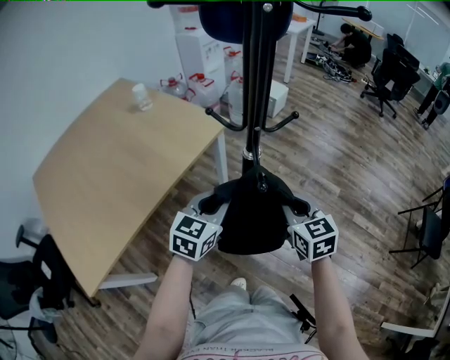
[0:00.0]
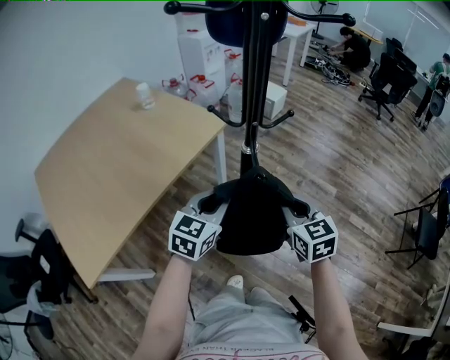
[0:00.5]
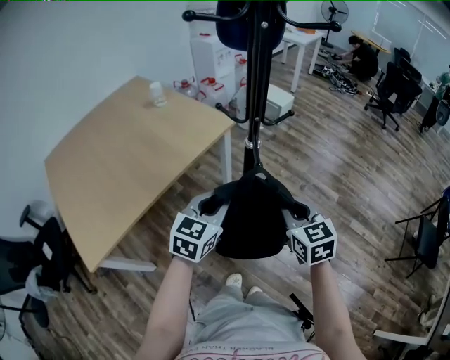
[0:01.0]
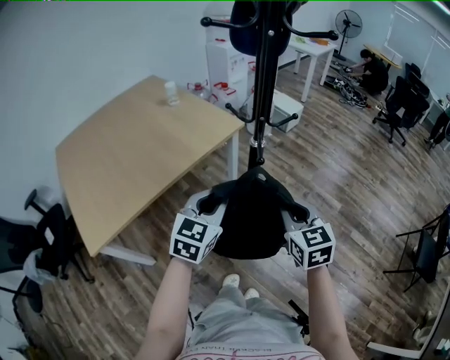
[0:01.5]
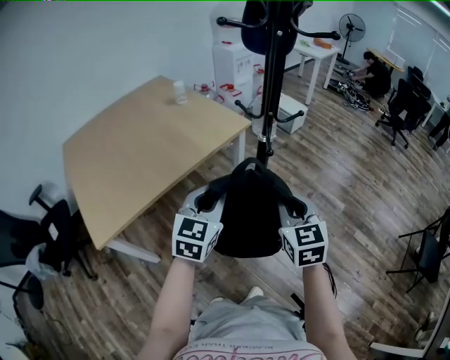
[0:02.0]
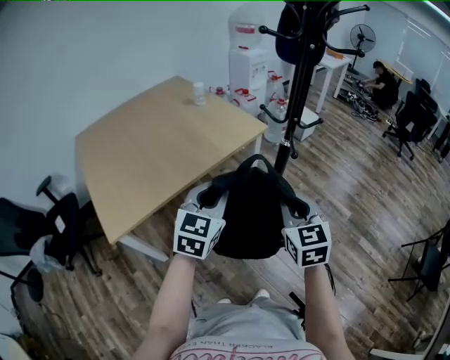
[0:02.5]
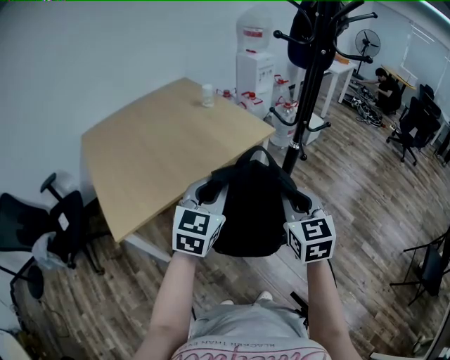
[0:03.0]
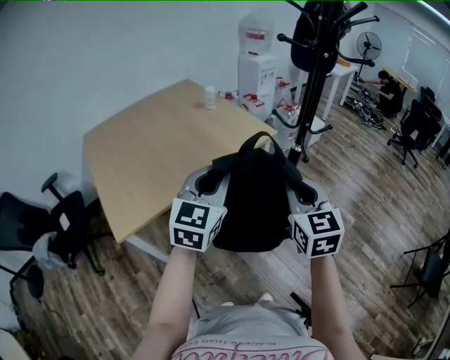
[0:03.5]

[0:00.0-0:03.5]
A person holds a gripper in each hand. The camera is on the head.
0:00.0 to 0:02.0: Both grippers move backward and upward, roughly 15 cm. The left gripper turns by some 20 degrees.
0:02.0 to 0:03.5: The grippers both shift to the left and upward by some 15 cm.

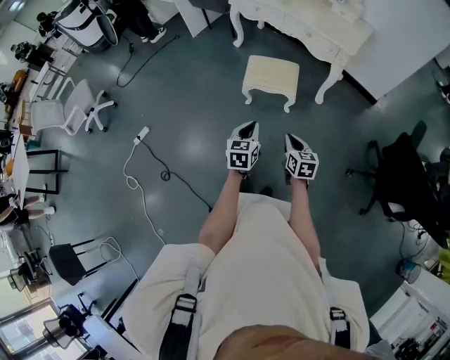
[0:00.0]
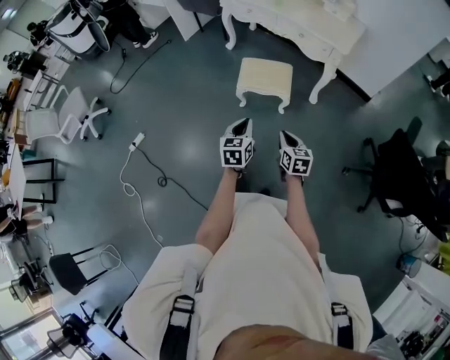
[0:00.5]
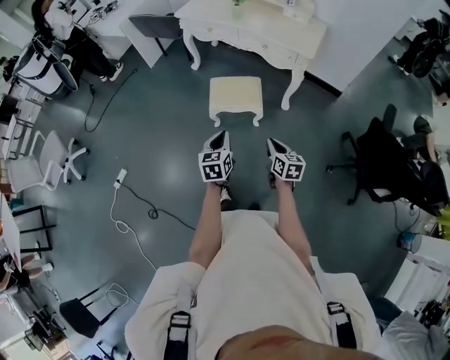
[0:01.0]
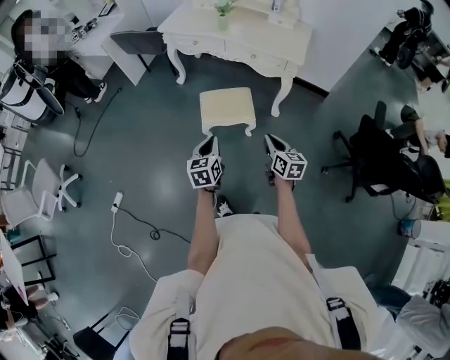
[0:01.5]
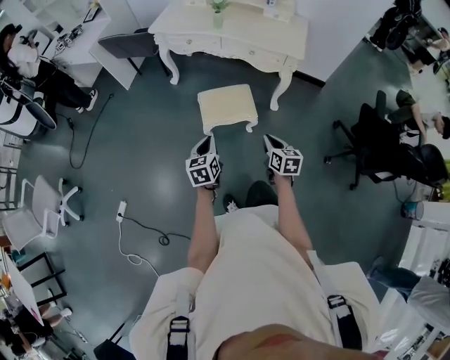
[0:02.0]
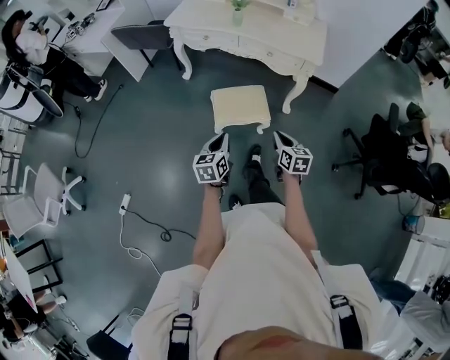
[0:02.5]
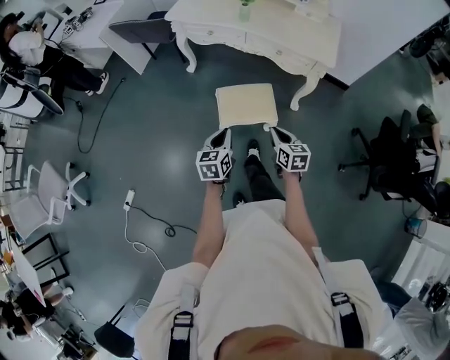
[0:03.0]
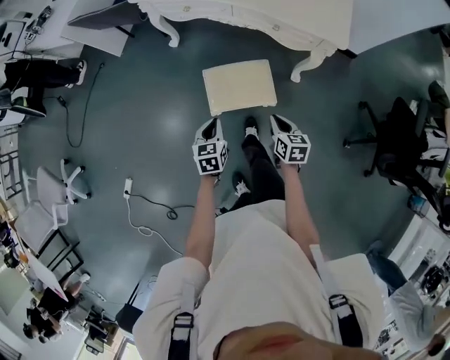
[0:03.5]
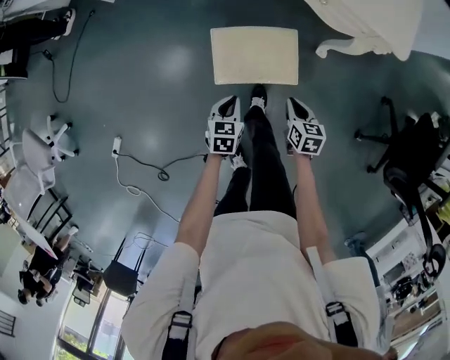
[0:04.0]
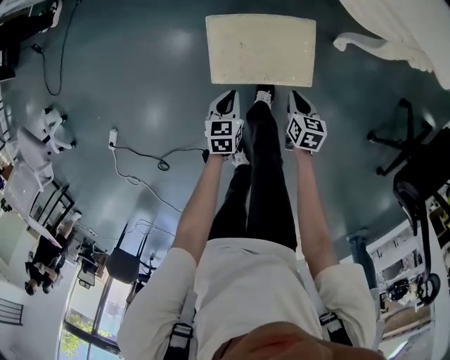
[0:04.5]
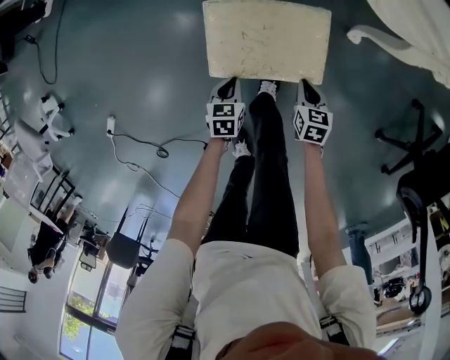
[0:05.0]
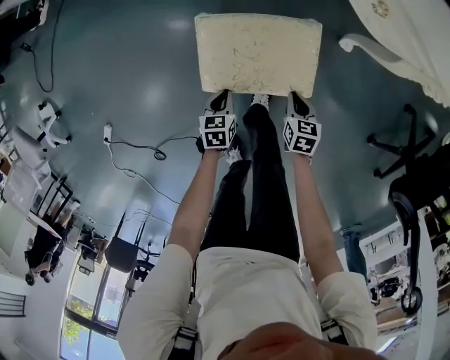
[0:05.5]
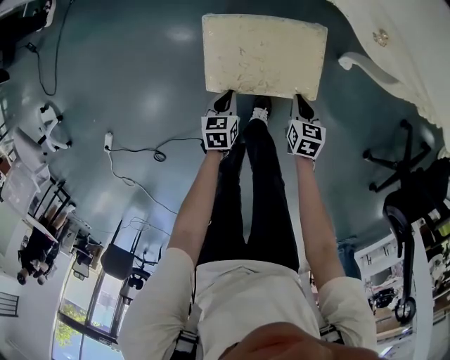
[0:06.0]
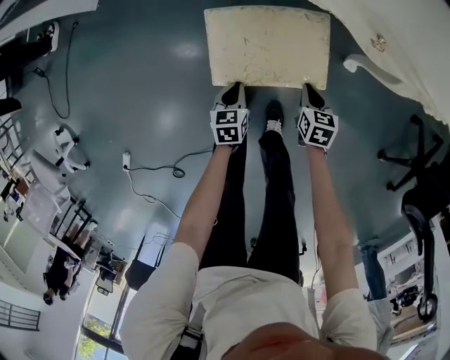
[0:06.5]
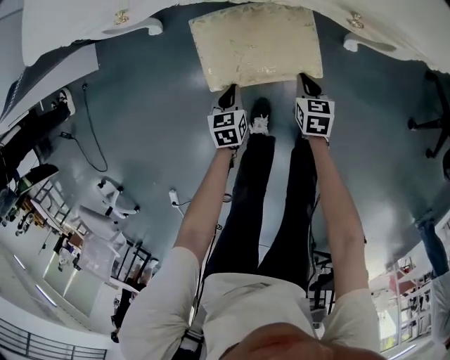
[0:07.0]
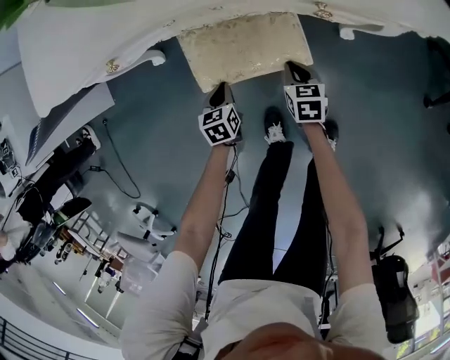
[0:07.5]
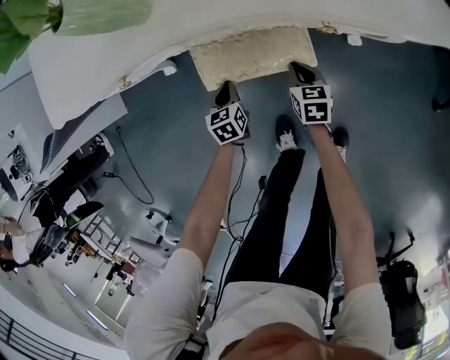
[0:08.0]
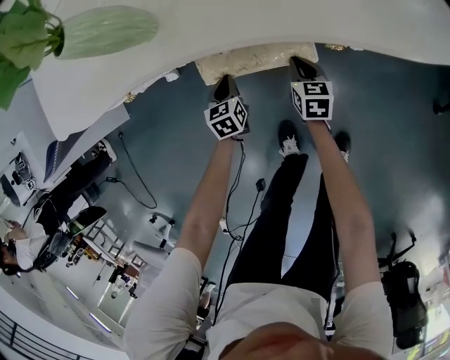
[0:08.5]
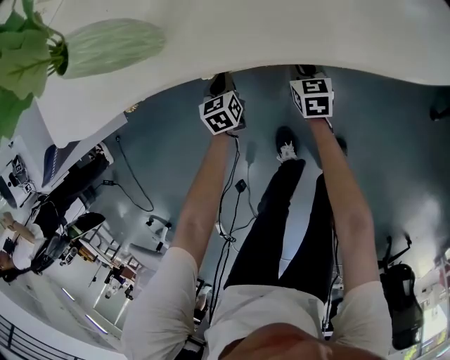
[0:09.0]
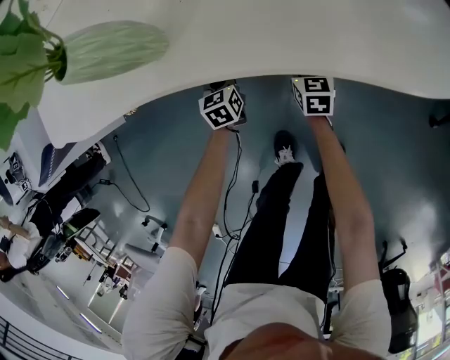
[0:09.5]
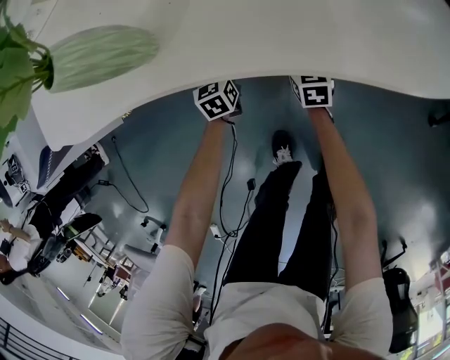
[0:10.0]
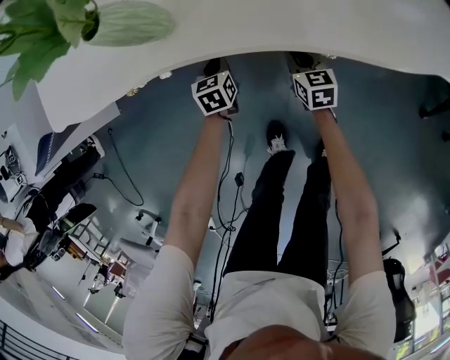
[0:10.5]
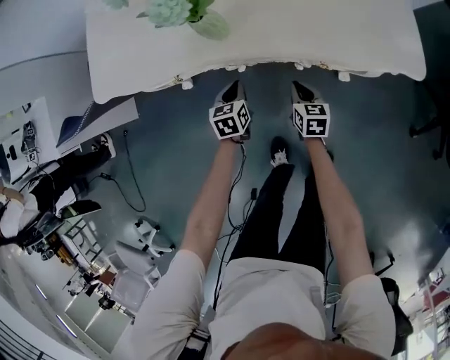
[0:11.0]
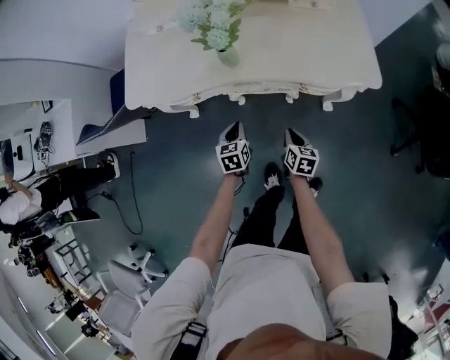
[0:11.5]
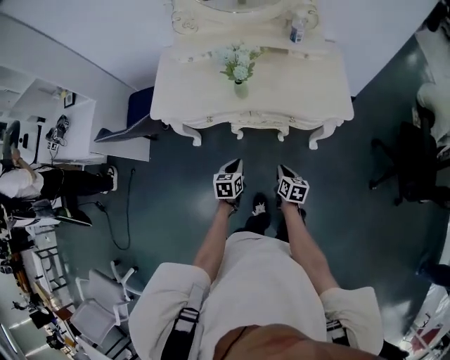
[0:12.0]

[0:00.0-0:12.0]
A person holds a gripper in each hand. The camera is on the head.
0:00.0 to 0:02.0: The left gripper goes about 25 cm forward and to the left; the right gripper moves forward, some 20 cm.
0:02.0 to 0:04.0: The two grippers go approximately 40 cm downward and forward. The left gripper rotates about 20 degrees.
0:04.0 to 0:06.0: Both grippers travel together downward and forward, roughly 25 cm.
0:06.0 to 0:08.0: The two grippers go roughly 25 cm forward. The left gripper turns by approximately 20 degrees. The right gripper changes its angle by roughly 30 degrees.
0:08.0 to 0:10.0: The grippers both shift forward by approximately 15 cm.
0:10.0 to 0:12.0: The grippers both shift upward and backward by approximately 50 cm. The right gripper rotates about 20 degrees.

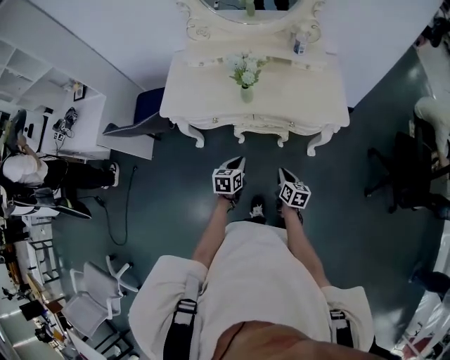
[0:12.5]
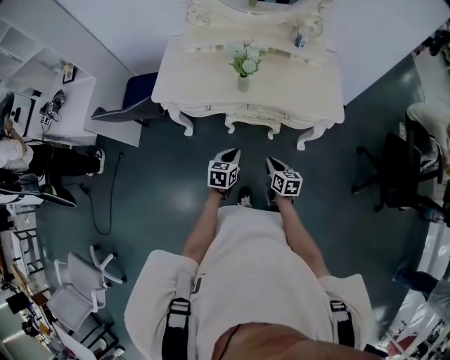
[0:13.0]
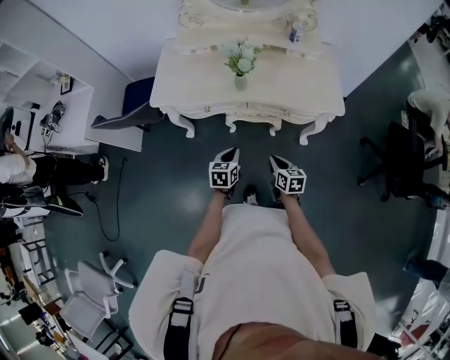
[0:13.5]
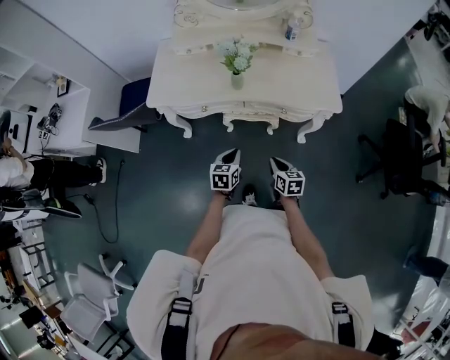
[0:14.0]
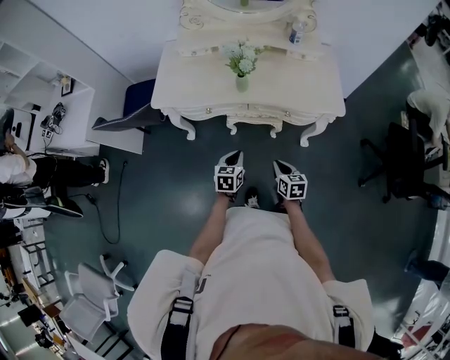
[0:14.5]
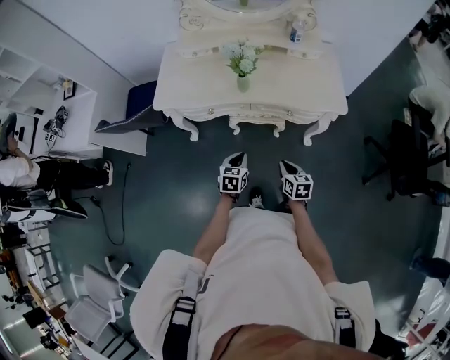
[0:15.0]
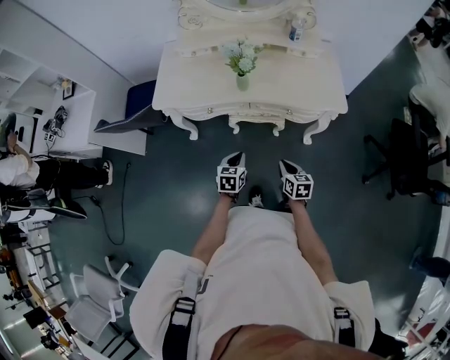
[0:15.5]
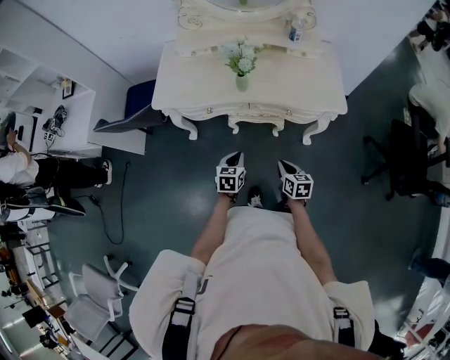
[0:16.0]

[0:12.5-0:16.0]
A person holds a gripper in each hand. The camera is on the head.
0:12.5 to 0:16.0: The grippers make only small movements.

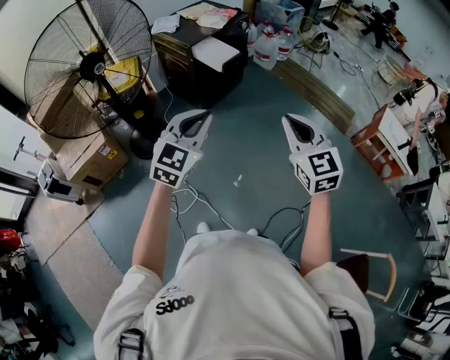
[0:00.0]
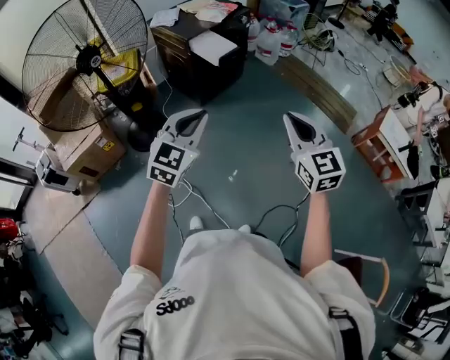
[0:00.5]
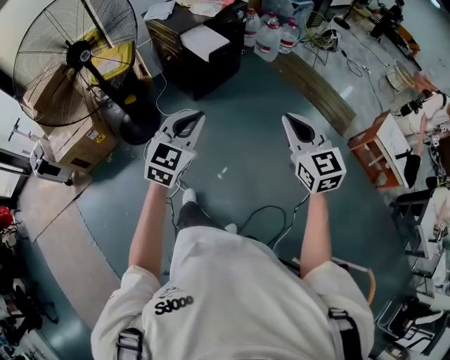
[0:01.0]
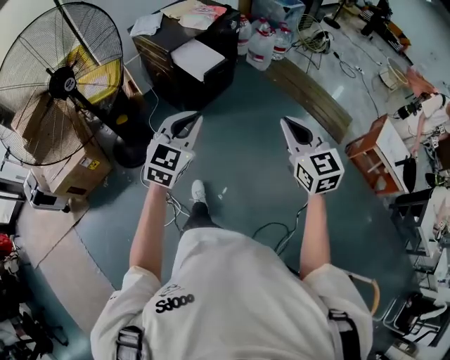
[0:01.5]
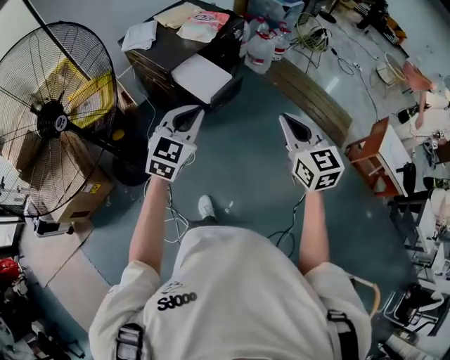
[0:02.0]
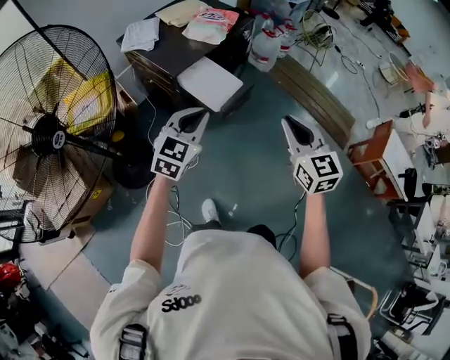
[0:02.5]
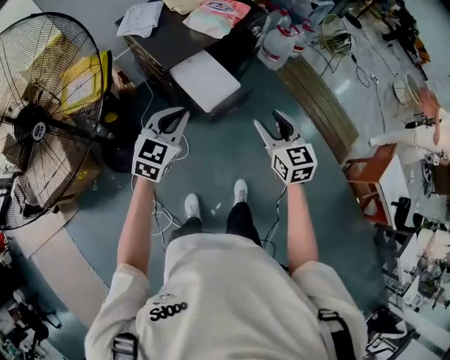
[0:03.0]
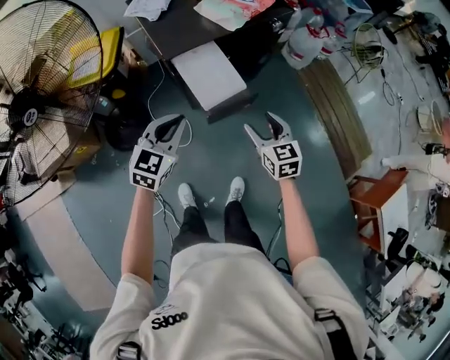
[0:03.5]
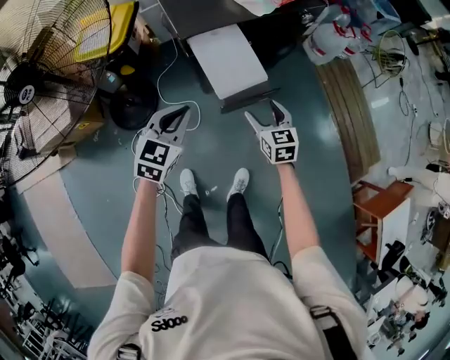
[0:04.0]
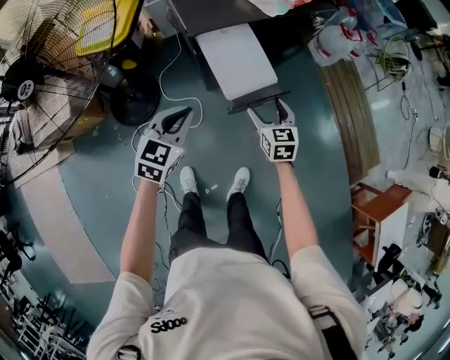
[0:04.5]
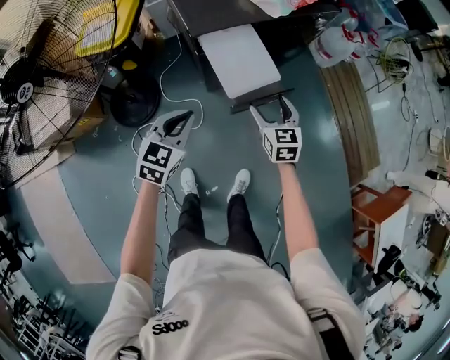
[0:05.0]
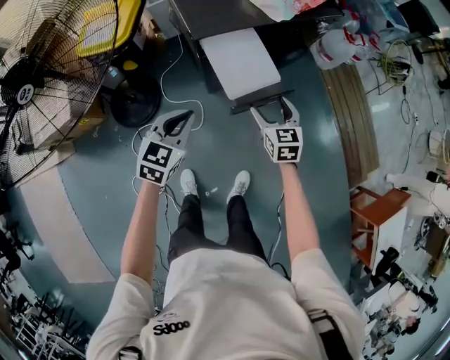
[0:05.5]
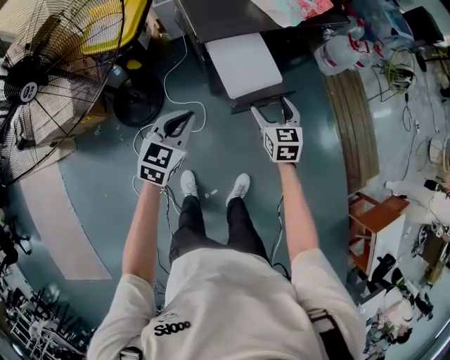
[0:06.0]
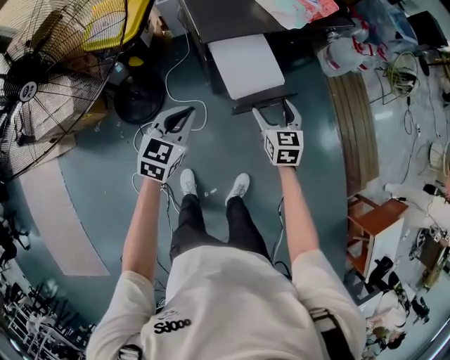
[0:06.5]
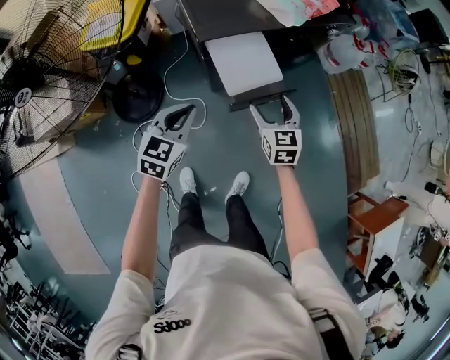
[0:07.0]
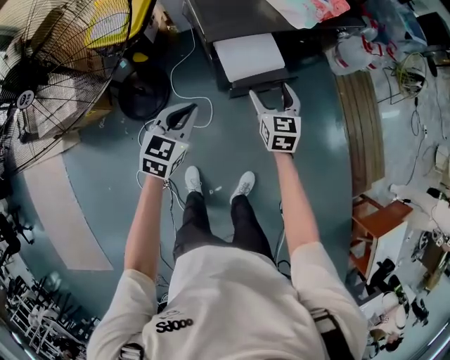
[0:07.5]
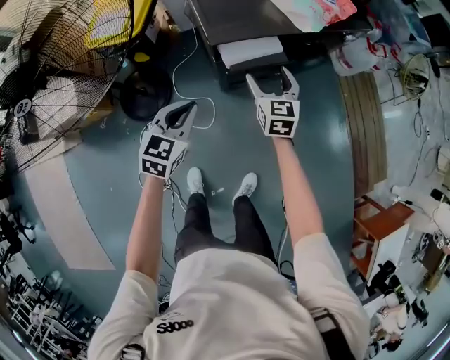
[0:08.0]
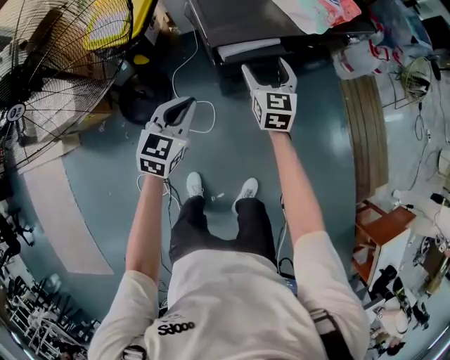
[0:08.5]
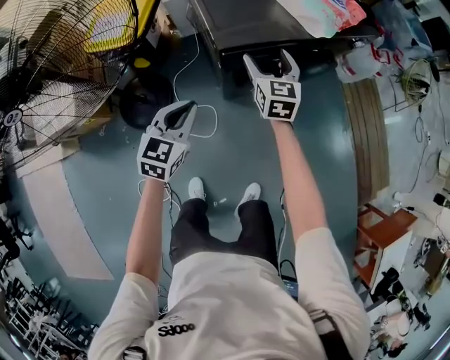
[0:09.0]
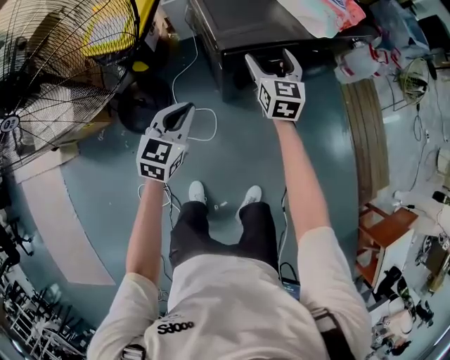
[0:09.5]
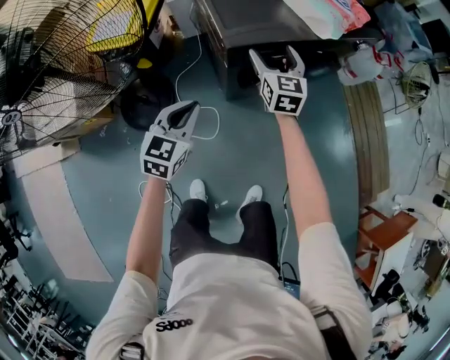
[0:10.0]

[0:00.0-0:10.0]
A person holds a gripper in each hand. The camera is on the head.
0:00.0 to 0:02.0: Both grippers move forward, some 35 cm.
0:02.0 to 0:04.0: The right gripper is displaced downward by some 35 cm, swivels roughly 30 degrees, and opens up. The left gripper travels downward by approximately 20 cm, and rotates about 30 degrees.
0:04.0 to 0:06.0: The right gripper goes roughly 5 cm forward, while the left gripper moves roughly 5 cm.
0:06.0 to 0:08.0: The right gripper is displaced forward and to the left by about 15 cm. Meanwhile the left gripper heads forward, covering about 5 cm.
0:08.0 to 0:10.0: The left gripper ends up roughly 5 cm from where it was. The right gripper shifts approximately 10 cm forward.
